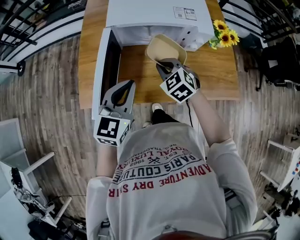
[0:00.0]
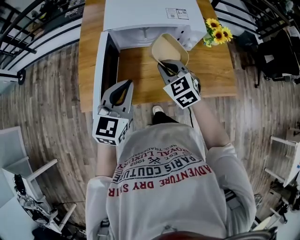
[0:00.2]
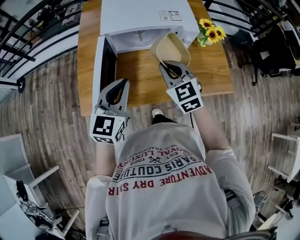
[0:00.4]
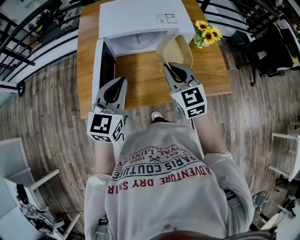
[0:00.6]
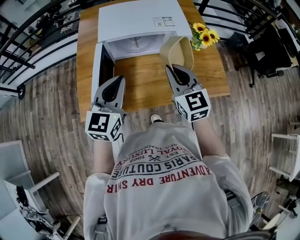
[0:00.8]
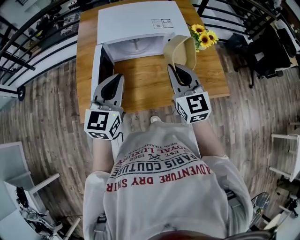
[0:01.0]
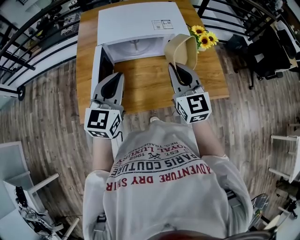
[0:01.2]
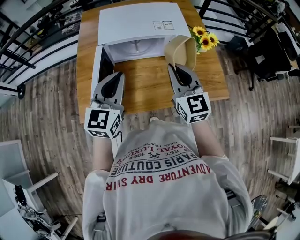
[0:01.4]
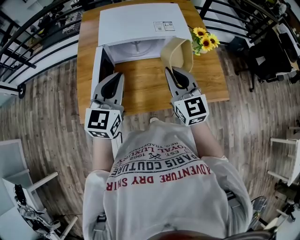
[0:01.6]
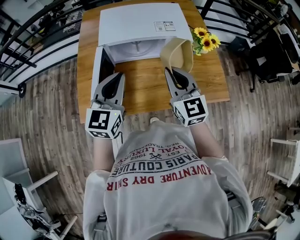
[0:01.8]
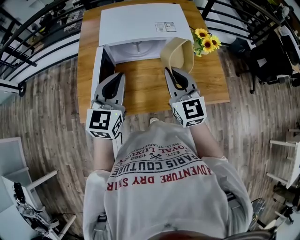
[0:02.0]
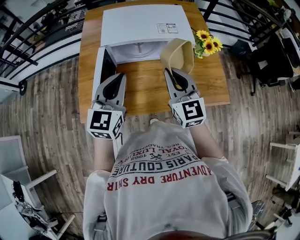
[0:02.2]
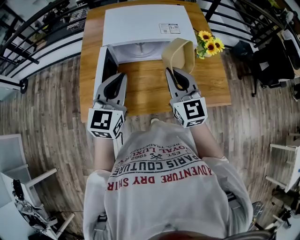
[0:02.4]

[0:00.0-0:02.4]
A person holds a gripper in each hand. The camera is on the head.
0:00.0 to 0:01.2: The left gripper shifts approximately 5 cm upward. The right gripper shifts roughly 20 cm upward and to the right, and tips its fingers upward by approximately 40 degrees.
0:01.2 to 0:02.4: The grippers move only a little.

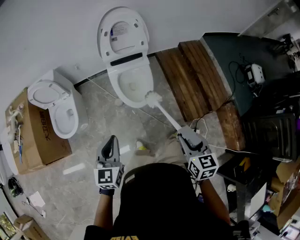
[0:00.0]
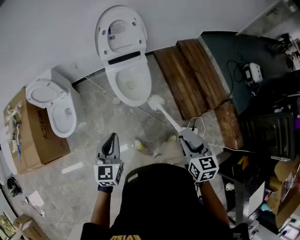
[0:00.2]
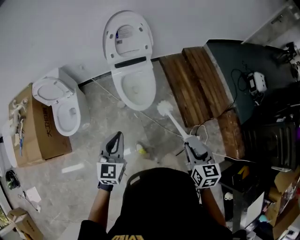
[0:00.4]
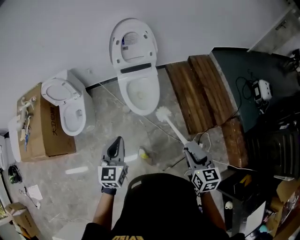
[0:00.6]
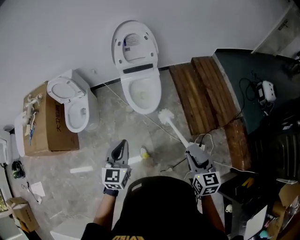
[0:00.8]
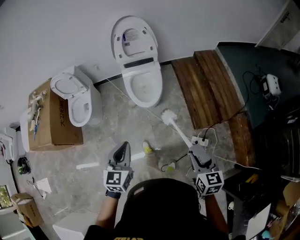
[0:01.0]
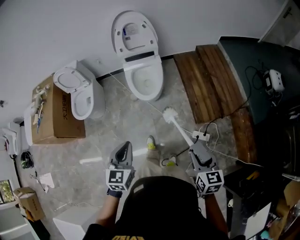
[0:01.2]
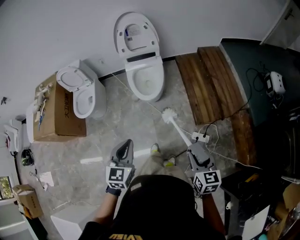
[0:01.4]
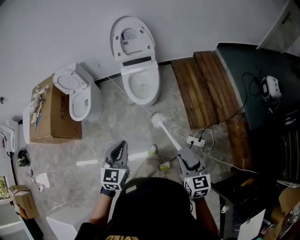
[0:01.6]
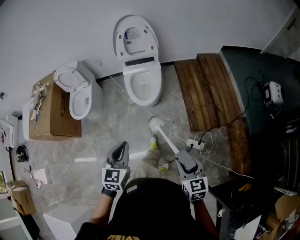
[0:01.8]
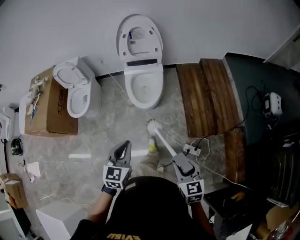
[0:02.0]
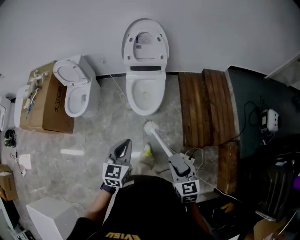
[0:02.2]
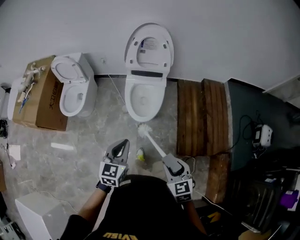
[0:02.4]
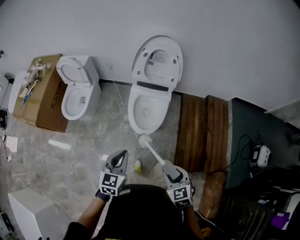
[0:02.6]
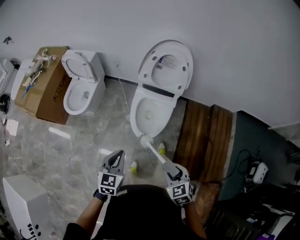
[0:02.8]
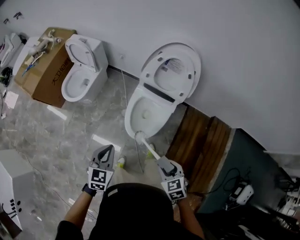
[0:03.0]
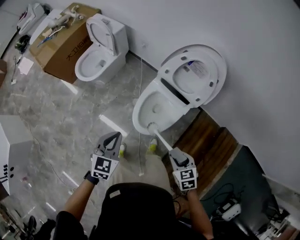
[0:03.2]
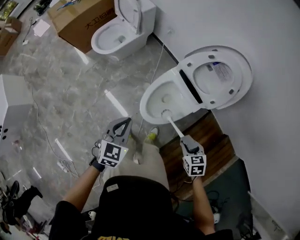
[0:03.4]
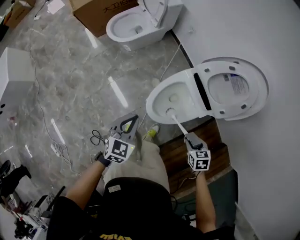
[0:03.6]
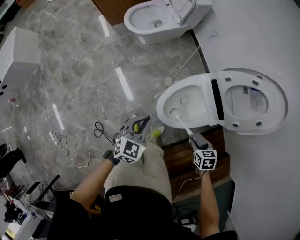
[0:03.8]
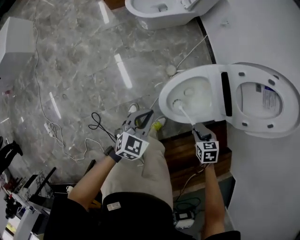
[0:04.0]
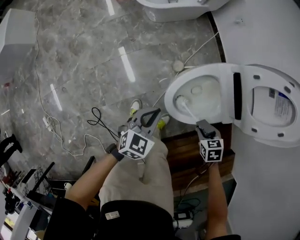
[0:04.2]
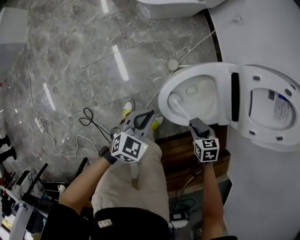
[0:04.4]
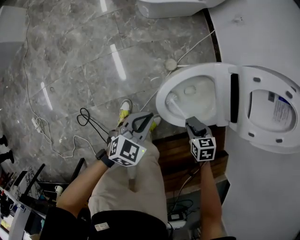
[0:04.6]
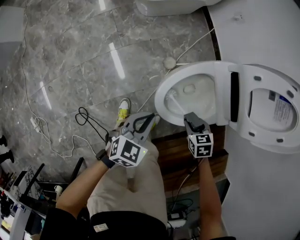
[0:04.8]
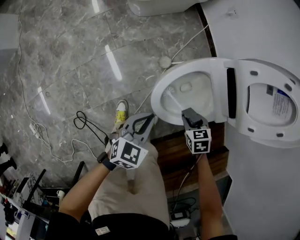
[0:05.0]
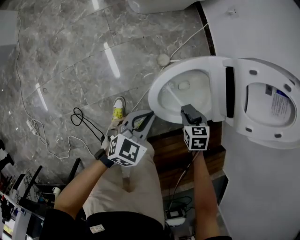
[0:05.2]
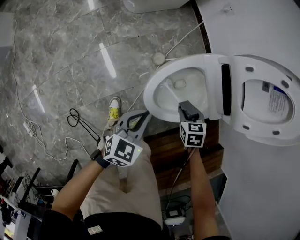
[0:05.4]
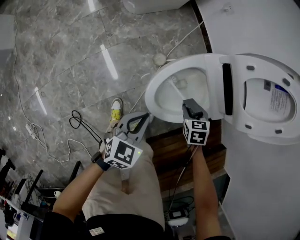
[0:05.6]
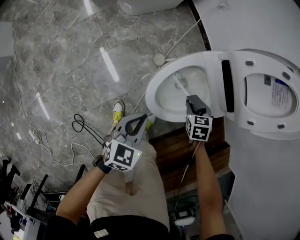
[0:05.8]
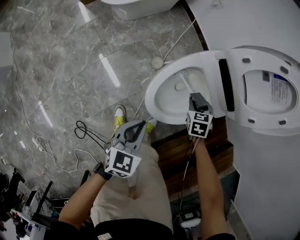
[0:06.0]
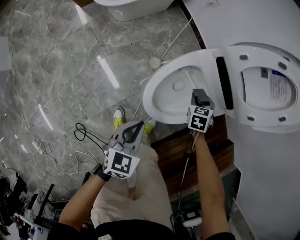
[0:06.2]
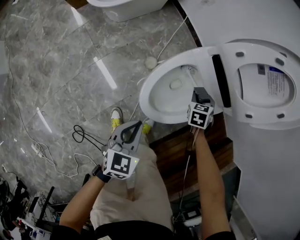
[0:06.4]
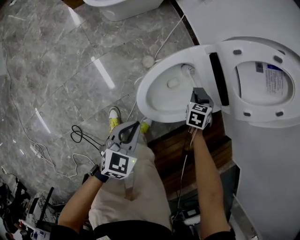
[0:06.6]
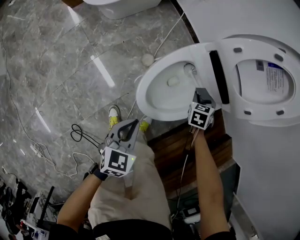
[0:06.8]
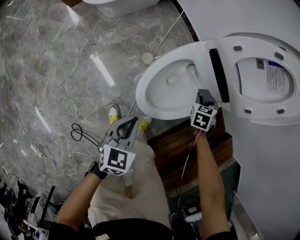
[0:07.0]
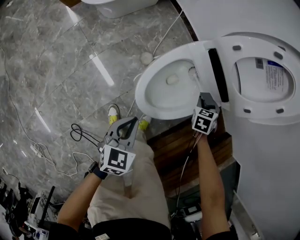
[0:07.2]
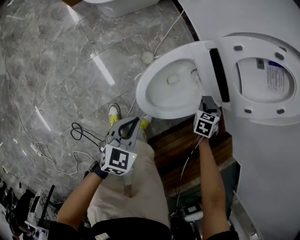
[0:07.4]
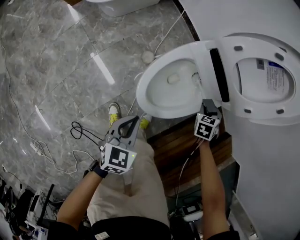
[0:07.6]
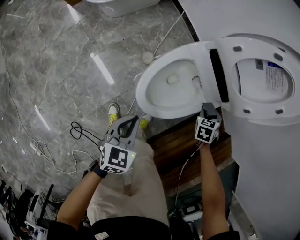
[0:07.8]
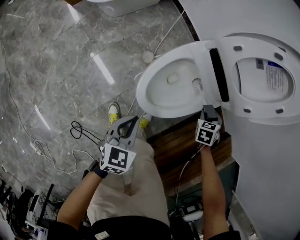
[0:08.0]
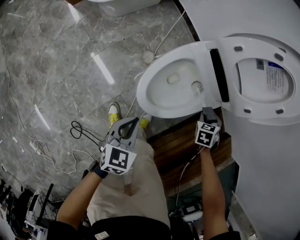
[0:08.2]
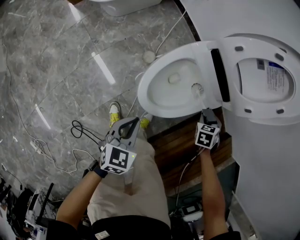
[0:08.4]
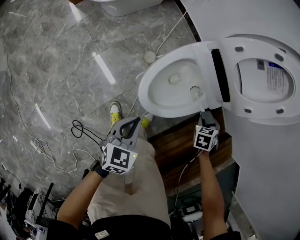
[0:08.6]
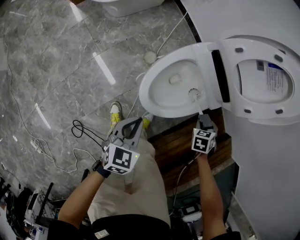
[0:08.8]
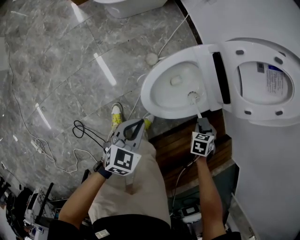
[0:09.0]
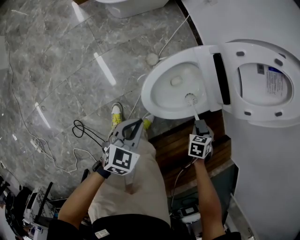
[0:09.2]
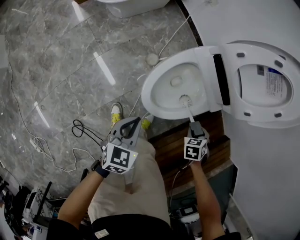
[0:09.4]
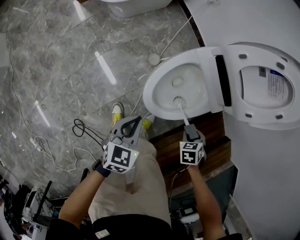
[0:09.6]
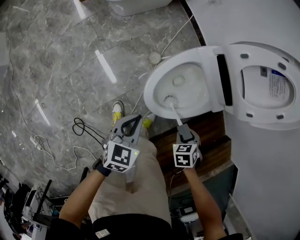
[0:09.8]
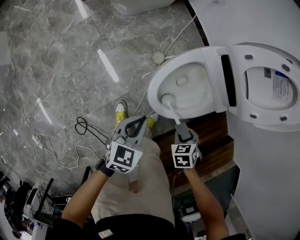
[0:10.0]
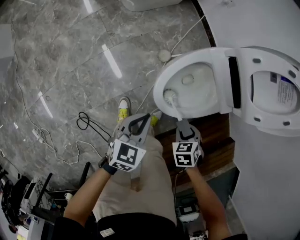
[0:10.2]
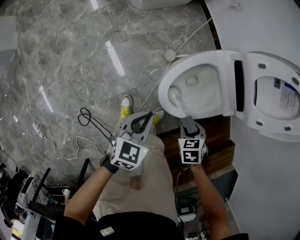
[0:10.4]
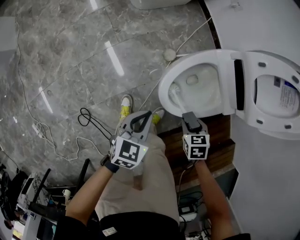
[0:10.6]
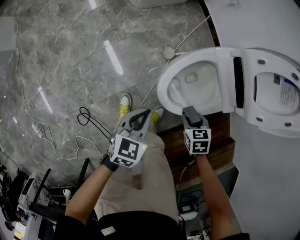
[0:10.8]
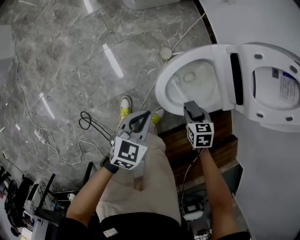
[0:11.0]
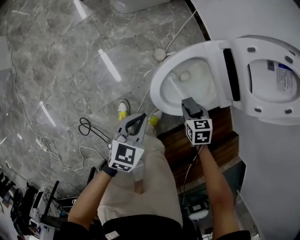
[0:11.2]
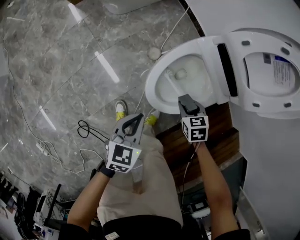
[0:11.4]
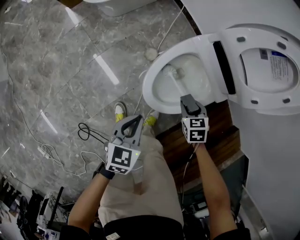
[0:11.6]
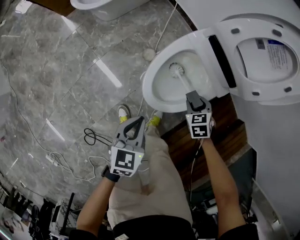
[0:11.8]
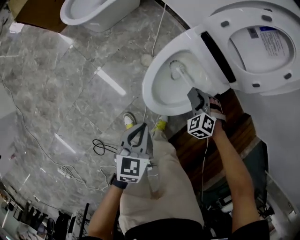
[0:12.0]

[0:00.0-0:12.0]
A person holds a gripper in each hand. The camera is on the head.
0:00.0 to 0:01.6: The left gripper heads to the right and backward, covering approximately 30 cm; the right gripper shifts approximately 25 cm backward and to the right.
0:01.6 to 0:03.0: The right gripper shifts by roughly 50 cm, and rotates about 50 degrees, while the left gripper ends up approximately 40 cm from where it was, and changes its angle by about 30 degrees.
0:03.0 to 0:04.4: Both grippers travel together downward, some 35 cm. The right gripper turns by roughly 40 degrees. Meanwhile the left gripper swivels some 30 degrees.
0:04.4 to 0:06.0: The right gripper ends up approximately 10 cm from where it was, and swivels approximately 30 degrees.
0:06.0 to 0:07.6: The right gripper travels to the right by approximately 10 cm.
0:07.6 to 0:09.0: The right gripper is displaced backward by about 10 cm.
0:09.0 to 0:10.4: The left gripper ends up some 5 cm from where it was, while the right gripper ends up some 20 cm from where it was, and swivels roughly 20 degrees.
0:10.4 to 0:12.0: The right gripper ends up roughly 15 cm from where it was, and turns by approximately 30 degrees.

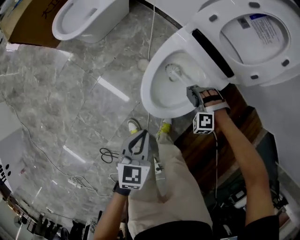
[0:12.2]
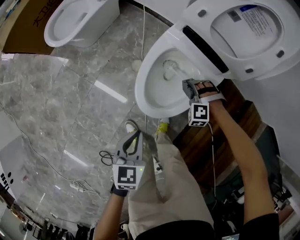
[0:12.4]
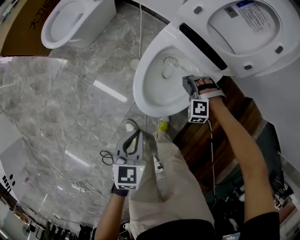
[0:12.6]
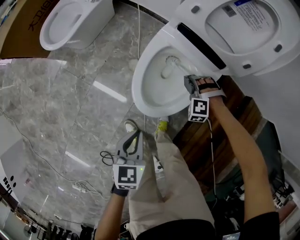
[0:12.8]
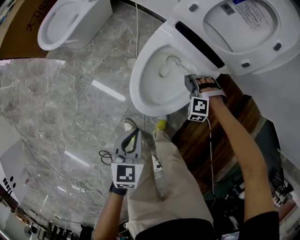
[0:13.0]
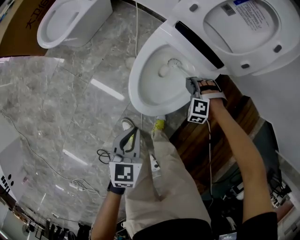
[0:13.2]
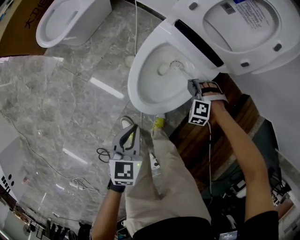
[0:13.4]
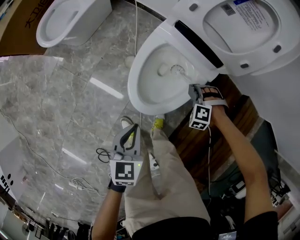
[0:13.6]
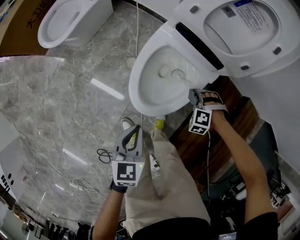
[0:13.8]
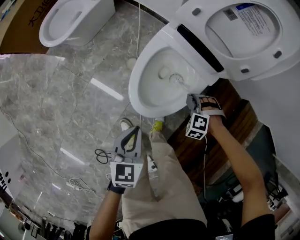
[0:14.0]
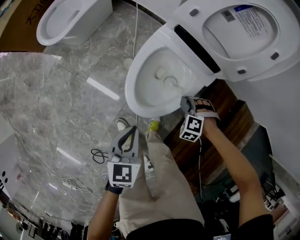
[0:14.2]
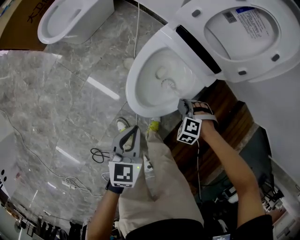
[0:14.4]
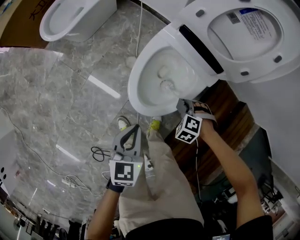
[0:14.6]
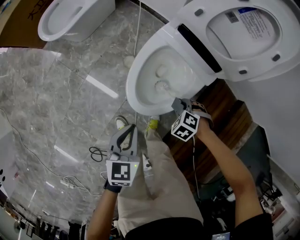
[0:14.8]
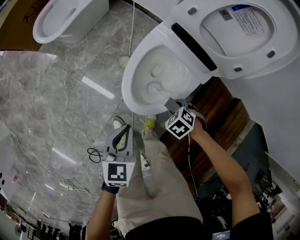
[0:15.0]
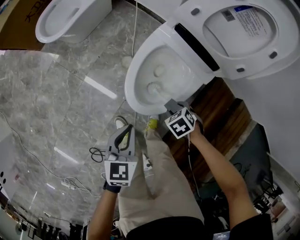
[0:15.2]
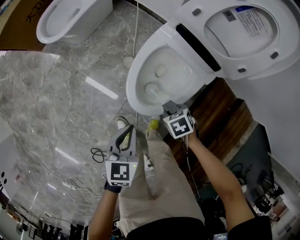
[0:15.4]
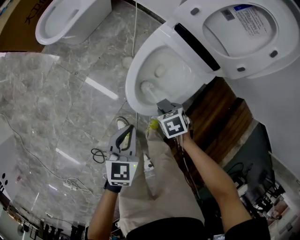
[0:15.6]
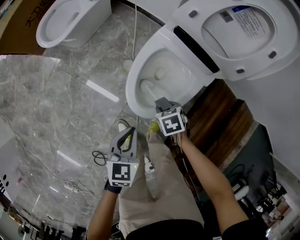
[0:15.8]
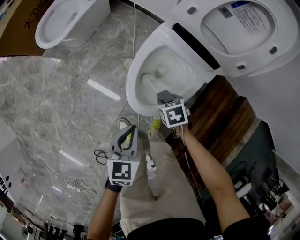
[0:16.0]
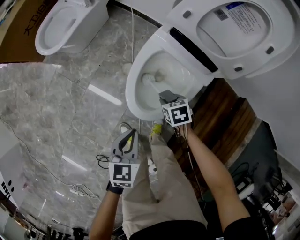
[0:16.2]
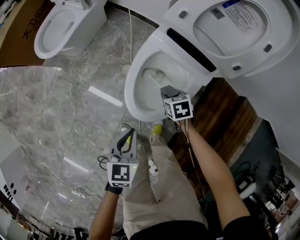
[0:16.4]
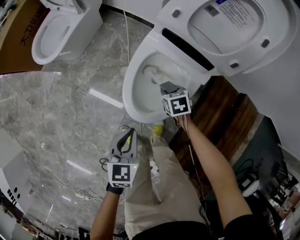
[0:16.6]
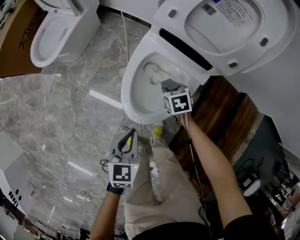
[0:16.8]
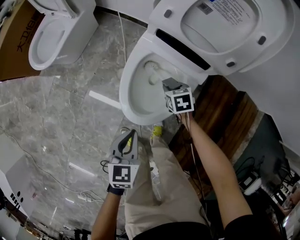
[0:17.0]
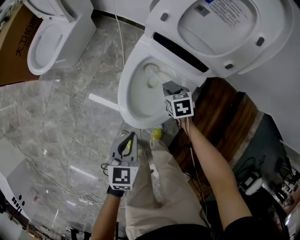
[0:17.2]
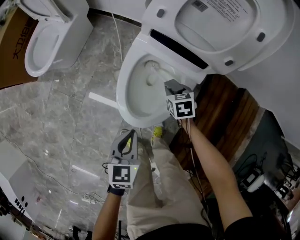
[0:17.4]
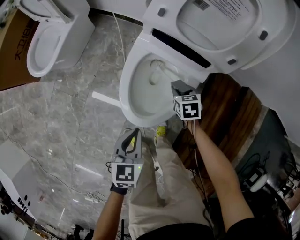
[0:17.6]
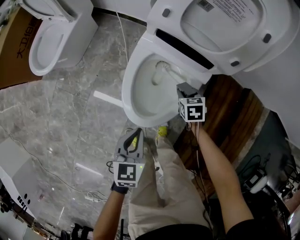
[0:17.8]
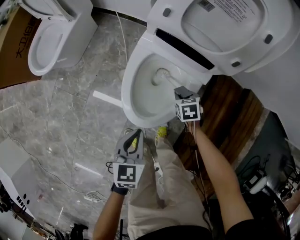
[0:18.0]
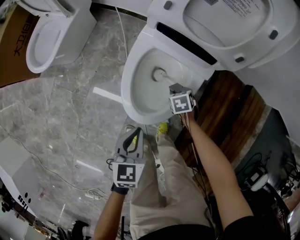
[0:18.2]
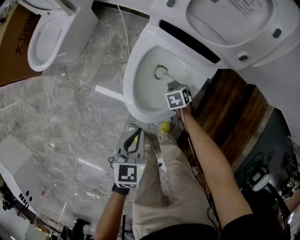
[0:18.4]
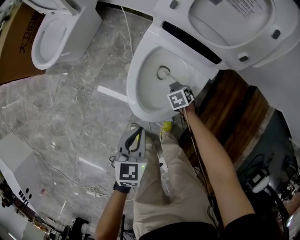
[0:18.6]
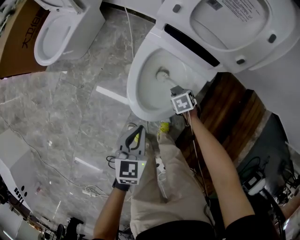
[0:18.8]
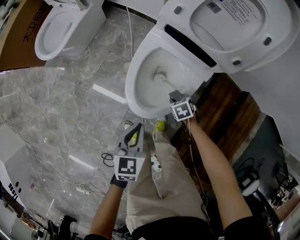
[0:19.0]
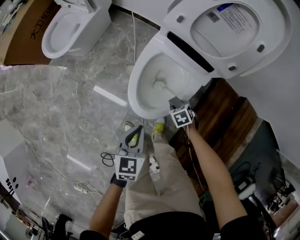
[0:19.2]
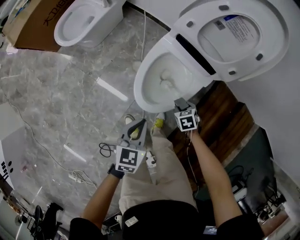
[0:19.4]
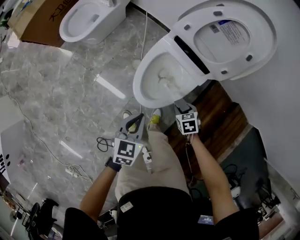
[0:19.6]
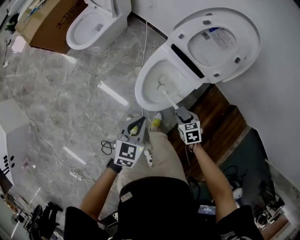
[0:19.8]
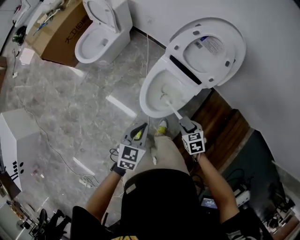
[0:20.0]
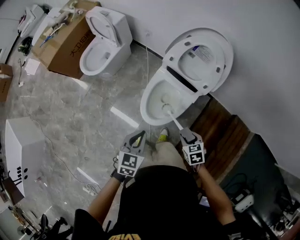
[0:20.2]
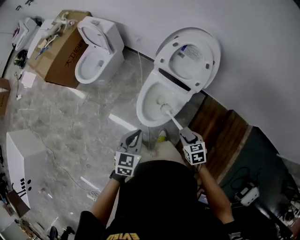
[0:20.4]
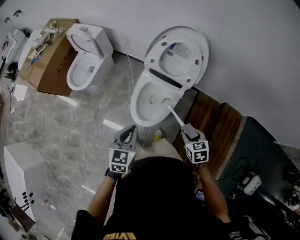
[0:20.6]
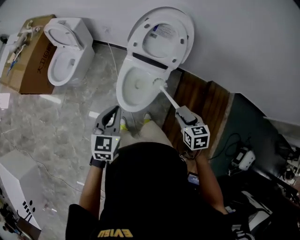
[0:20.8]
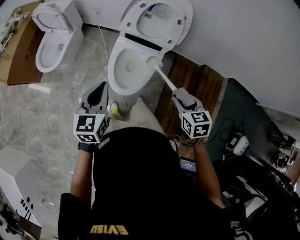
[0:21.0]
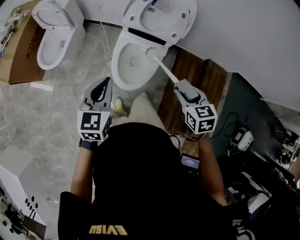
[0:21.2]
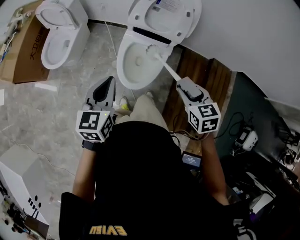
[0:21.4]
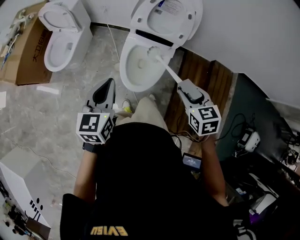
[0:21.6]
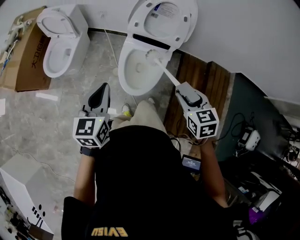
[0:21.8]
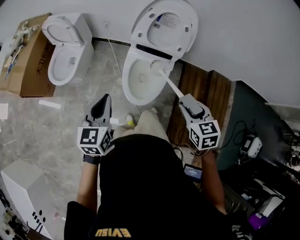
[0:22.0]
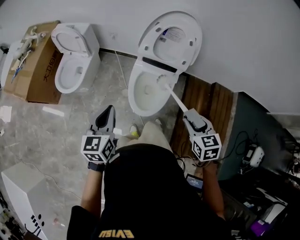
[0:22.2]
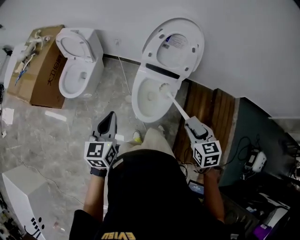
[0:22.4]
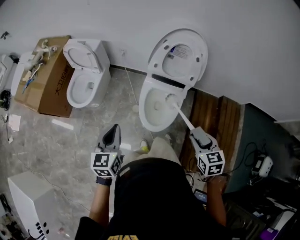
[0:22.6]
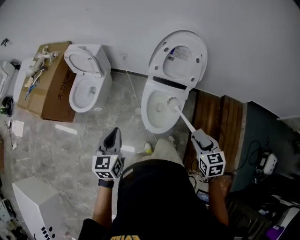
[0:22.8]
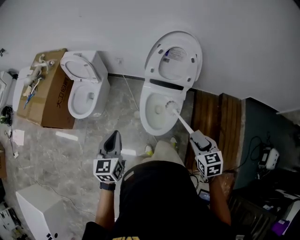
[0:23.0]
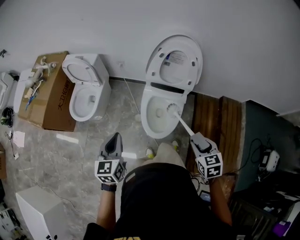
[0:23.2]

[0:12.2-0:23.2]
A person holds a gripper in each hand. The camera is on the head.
0:12.2 to 0:13.8: The right gripper travels to the right by some 10 cm, and swivels some 20 degrees.
0:13.8 to 0:15.4: The right gripper ends up about 10 cm from where it was, and twists some 60 degrees clockwise, seen from behind.
0:15.4 to 0:17.0: The left gripper ends up about 5 cm from where it was. Meanwhile the right gripper ends up some 15 cm from where it was, and changes its angle by about 30 degrees.
0:17.0 to 0:18.4: The right gripper is displaced downward by about 10 cm.
0:18.4 to 0:20.0: The grippers both shift upward by about 35 cm.
0:20.0 to 0:21.6: The right gripper travels upward by roughly 20 cm, and rotates about 30 degrees. The left gripper heads upward and to the left, covering roughly 20 cm.
0:21.6 to 0:23.2: The left gripper shifts some 10 cm to the left, while the right gripper is displaced backward by some 5 cm.
